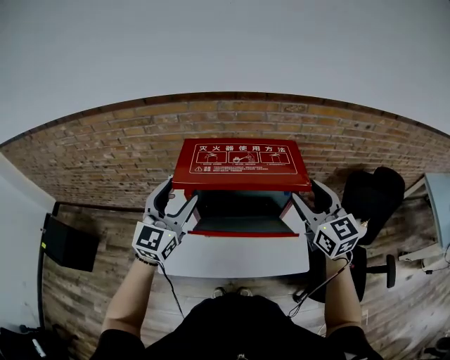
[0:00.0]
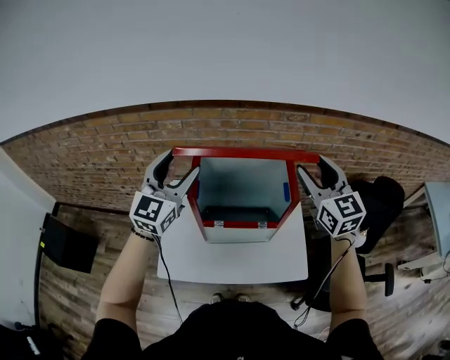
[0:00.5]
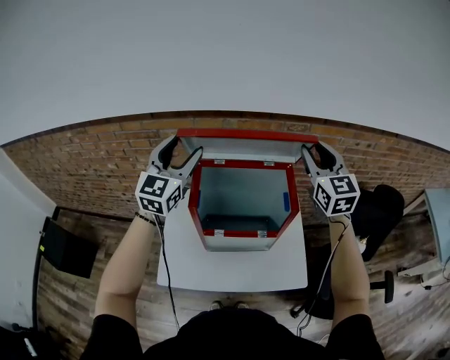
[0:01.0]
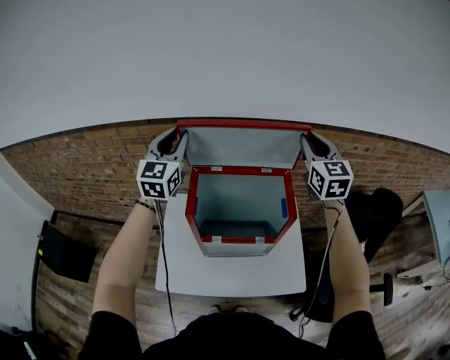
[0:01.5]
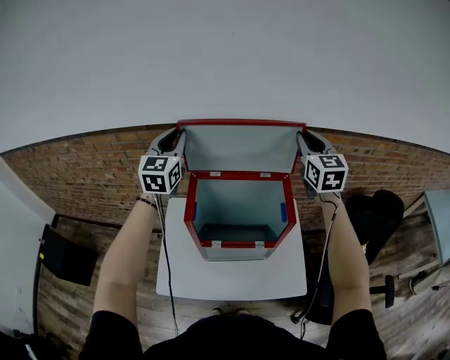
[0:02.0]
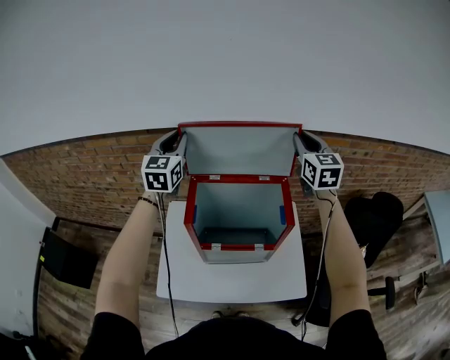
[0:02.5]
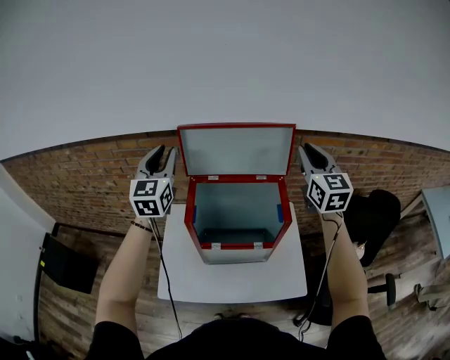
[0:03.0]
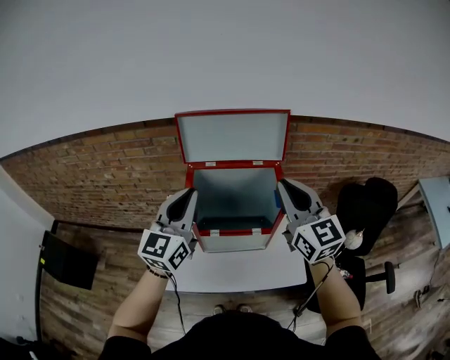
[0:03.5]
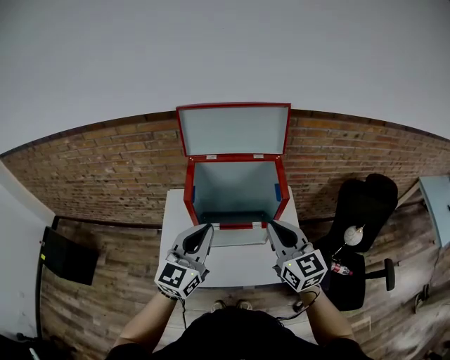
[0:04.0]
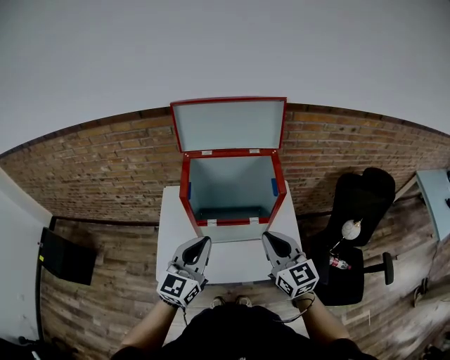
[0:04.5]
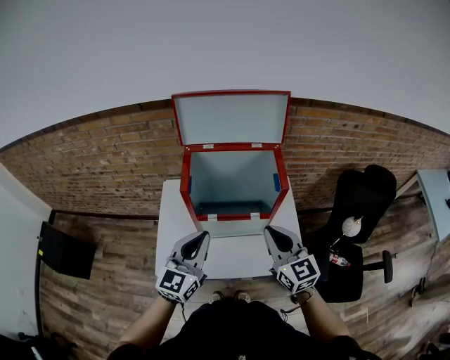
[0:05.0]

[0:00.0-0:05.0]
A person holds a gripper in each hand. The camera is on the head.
0:00.0 to 0:02.5: Both grippers travel together forward and upward, about 25 cm. The right gripper closes up, while the left gripper closes up.
0:02.5 to 0:05.0: Both grippers travel together backward and downward, roughly 40 cm. The left gripper turns by about 20 degrees.

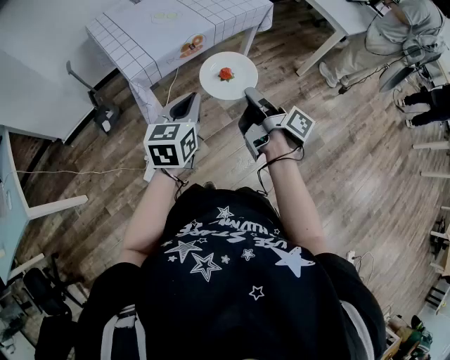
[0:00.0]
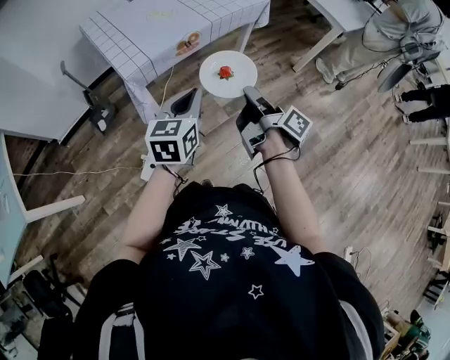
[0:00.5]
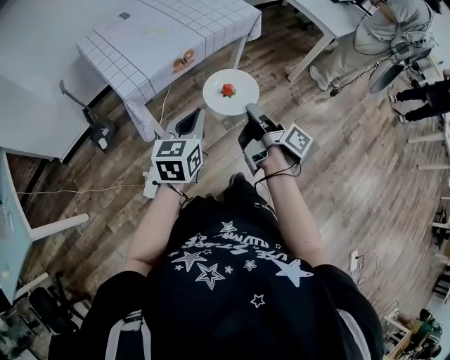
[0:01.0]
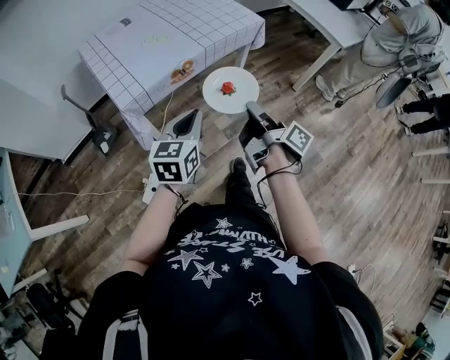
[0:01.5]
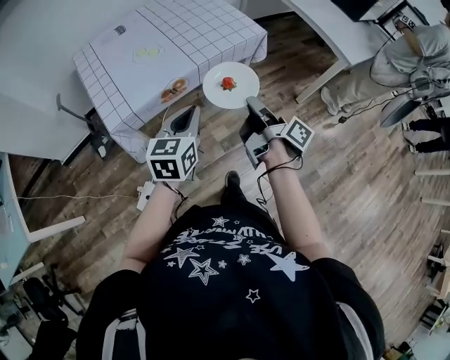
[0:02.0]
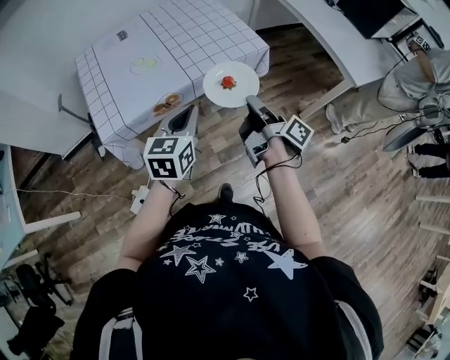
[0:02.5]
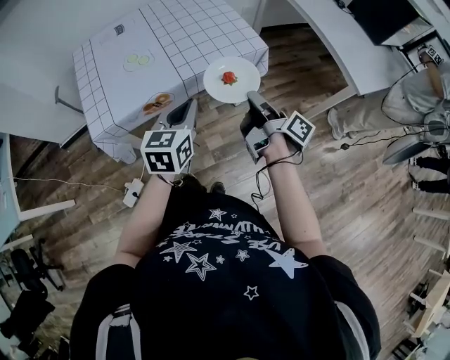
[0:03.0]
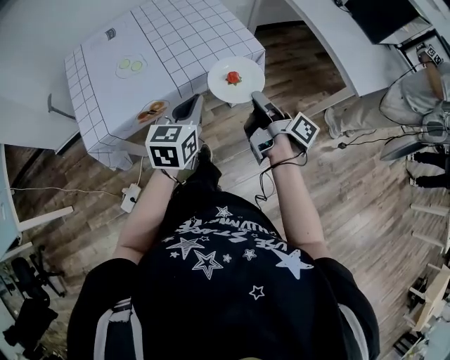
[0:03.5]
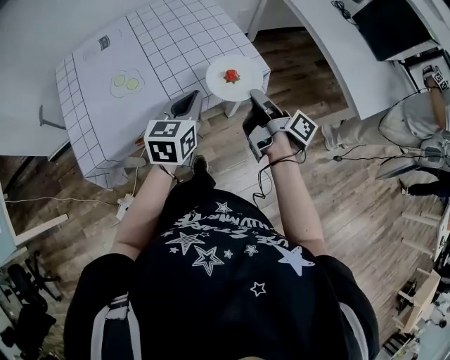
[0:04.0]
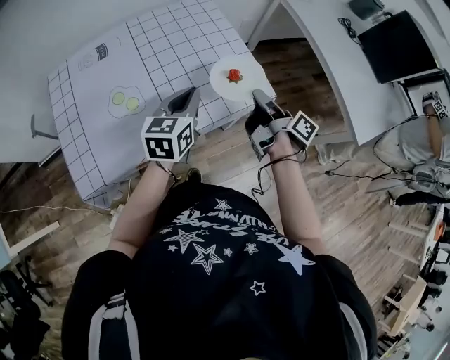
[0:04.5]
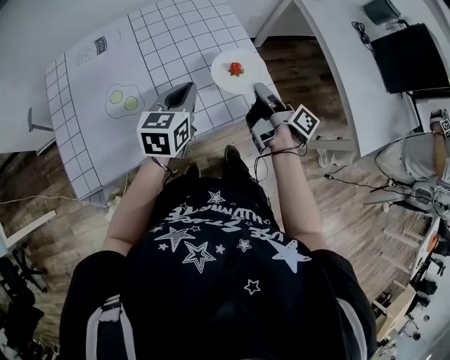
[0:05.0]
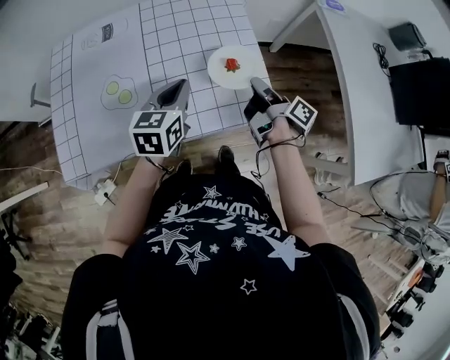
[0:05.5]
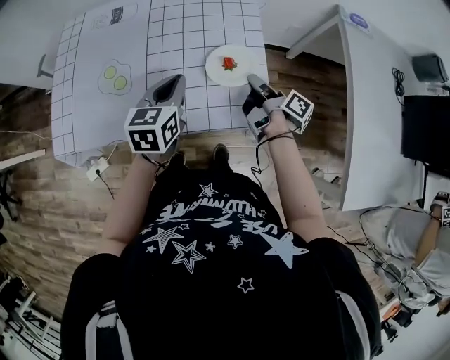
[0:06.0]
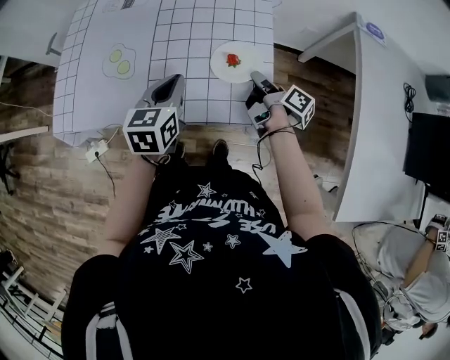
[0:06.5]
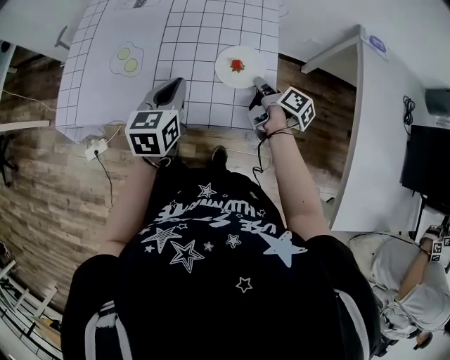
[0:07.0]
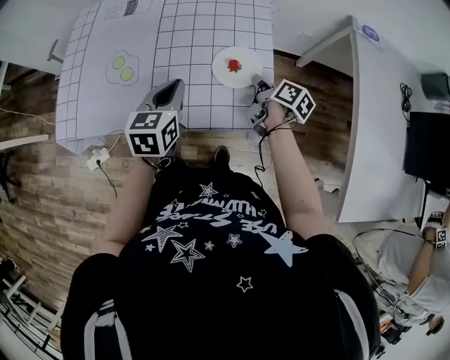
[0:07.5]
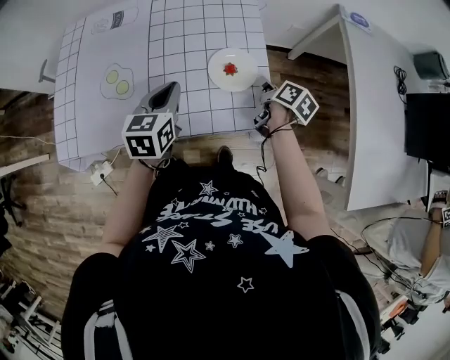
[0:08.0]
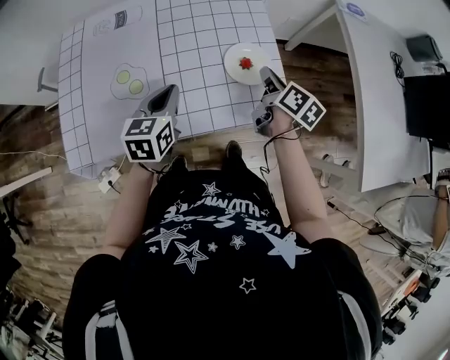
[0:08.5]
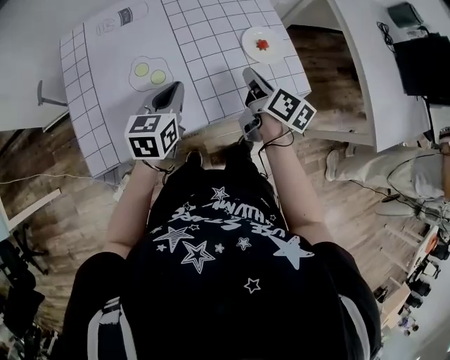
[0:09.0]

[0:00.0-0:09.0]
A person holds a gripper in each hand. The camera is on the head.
0:00.0 to 0:02.0: Both grippers move forward and to the right, approximately 20 cm.
0:02.0 to 0:04.5: The two grippers go about 35 cm forward.
0:04.5 to 0:07.0: The left gripper changes its angle by approximately 30 degrees; the right gripper moves some 20 cm, and changes its angle by roughly 40 degrees.
0:07.0 to 0:09.0: The right gripper shifts by about 20 cm, and swivels approximately 30 degrees. The left gripper shifts by roughly 15 cm, and turns by about 30 degrees.

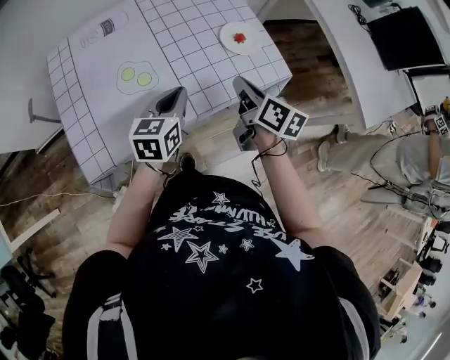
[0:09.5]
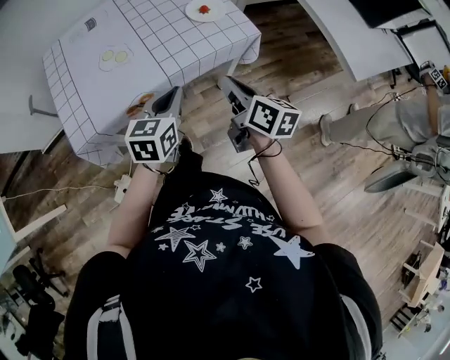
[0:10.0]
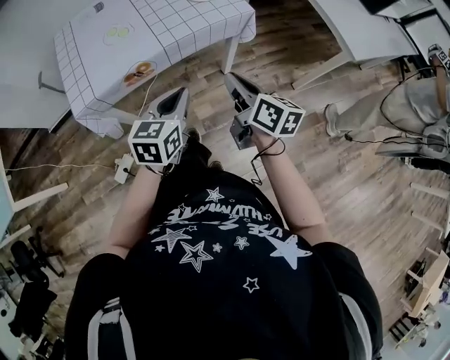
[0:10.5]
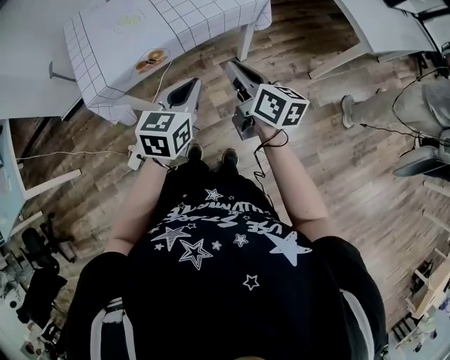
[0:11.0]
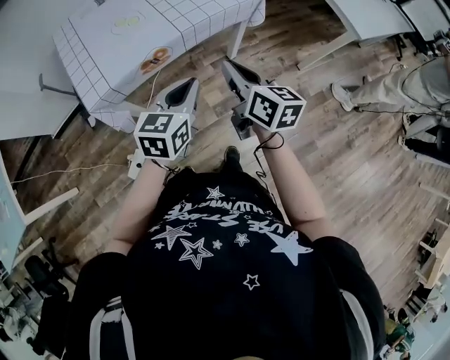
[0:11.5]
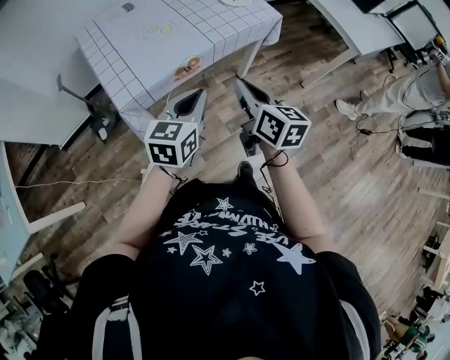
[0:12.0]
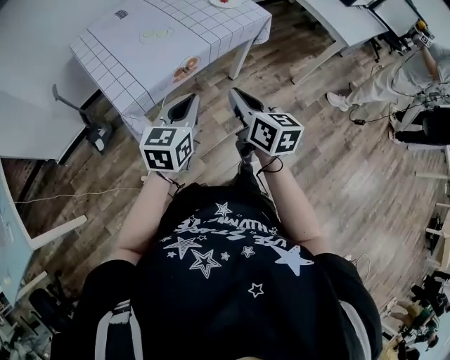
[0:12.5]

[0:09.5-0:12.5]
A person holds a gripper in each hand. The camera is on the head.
0:09.5 to 0:11.0: The left gripper heads backward and to the right, covering approximately 30 cm. The right gripper travels backward by roughly 25 cm.
0:11.0 to 0:12.5: The left gripper heads to the left, covering approximately 20 cm, while the right gripper heads to the left and backward, covering some 20 cm, and rotates some 20 degrees.

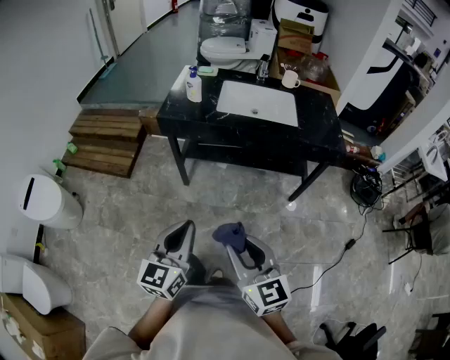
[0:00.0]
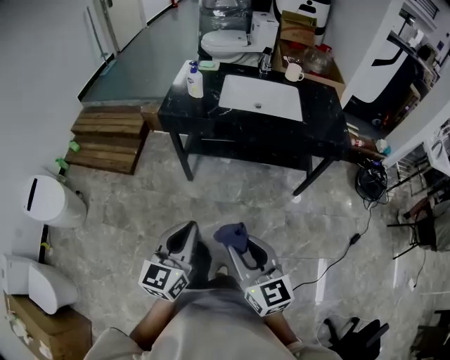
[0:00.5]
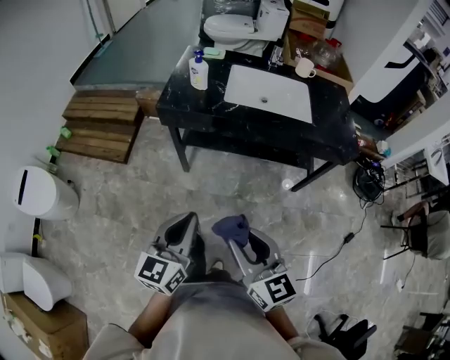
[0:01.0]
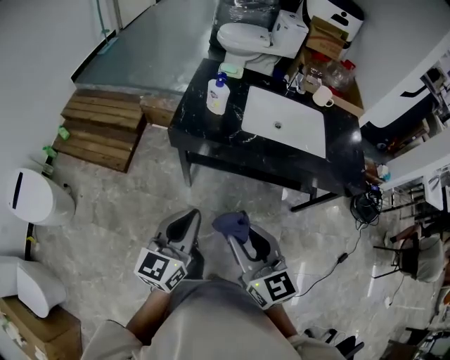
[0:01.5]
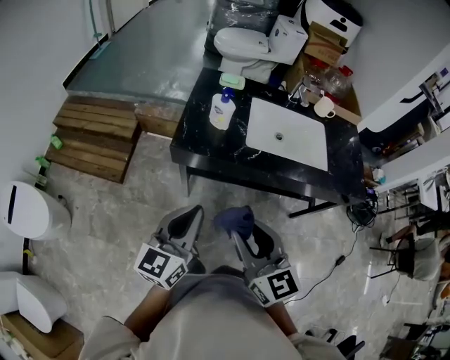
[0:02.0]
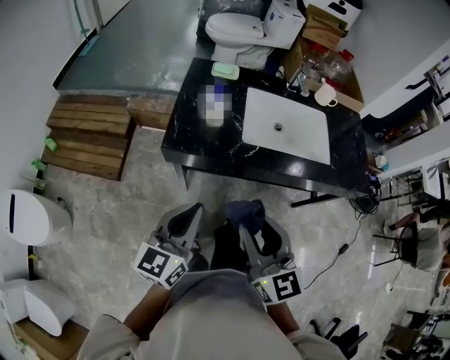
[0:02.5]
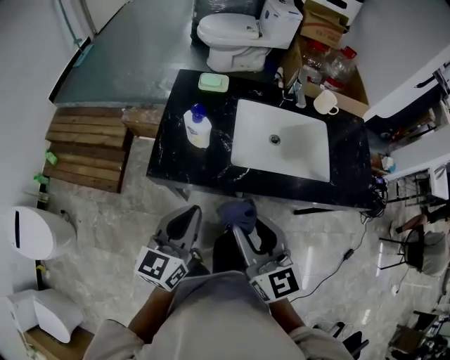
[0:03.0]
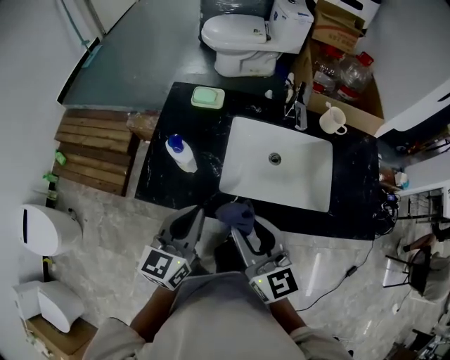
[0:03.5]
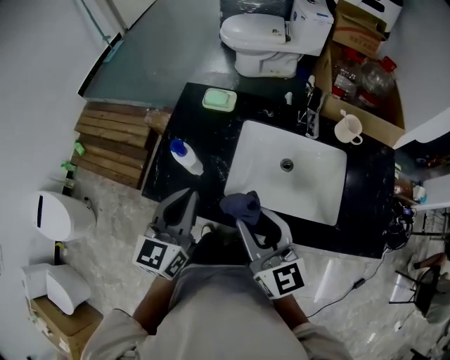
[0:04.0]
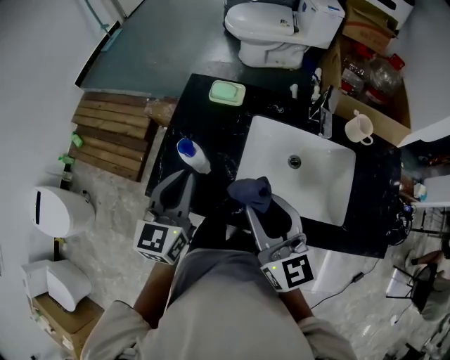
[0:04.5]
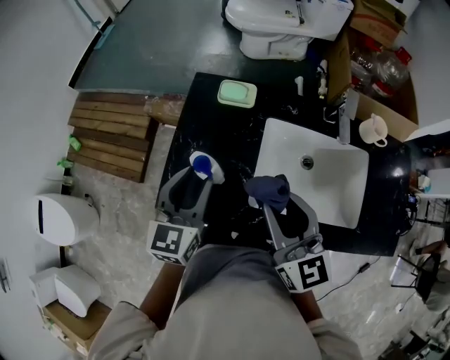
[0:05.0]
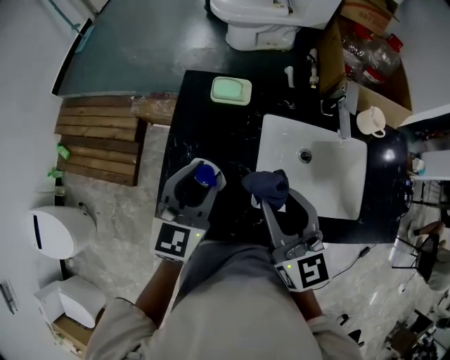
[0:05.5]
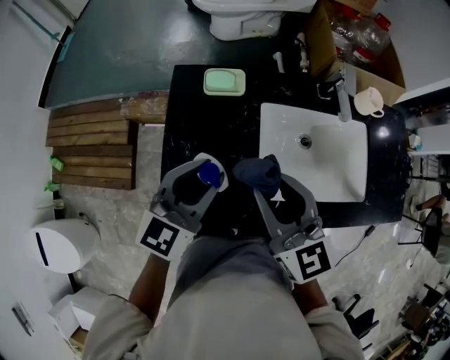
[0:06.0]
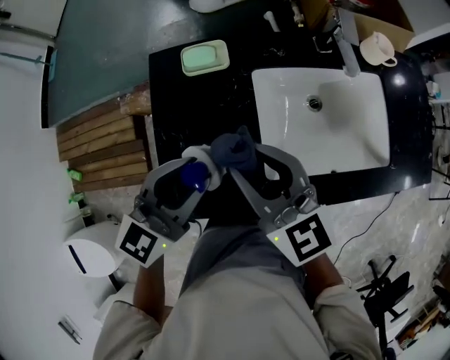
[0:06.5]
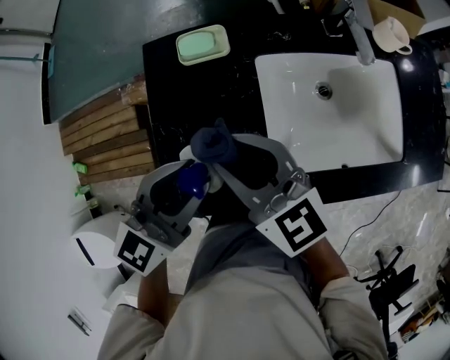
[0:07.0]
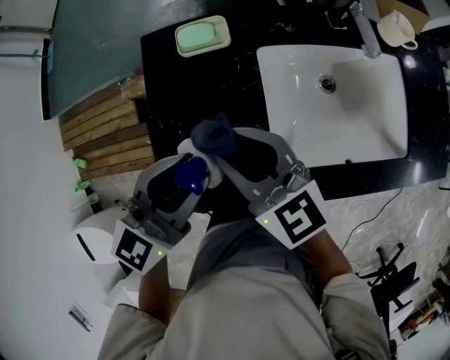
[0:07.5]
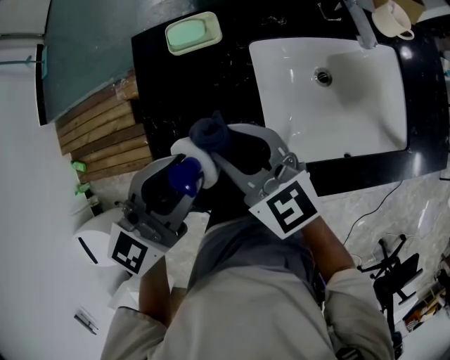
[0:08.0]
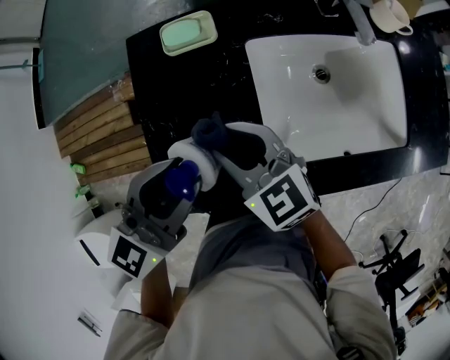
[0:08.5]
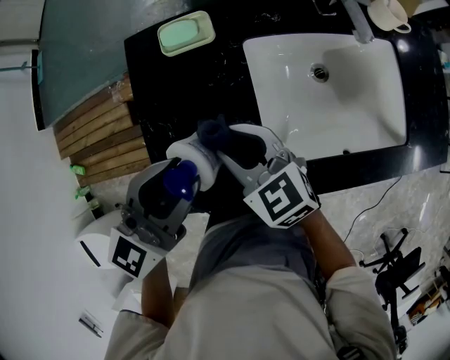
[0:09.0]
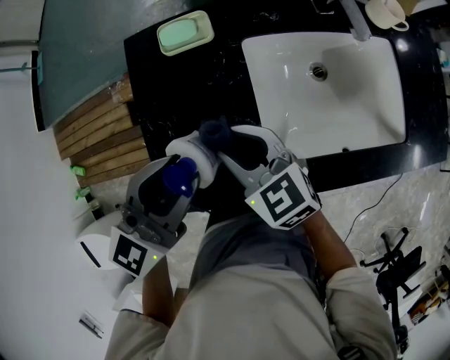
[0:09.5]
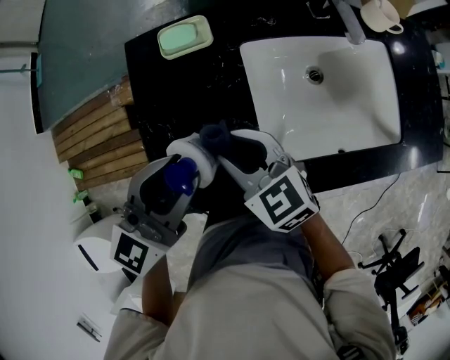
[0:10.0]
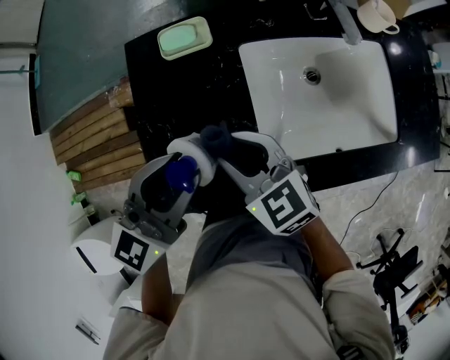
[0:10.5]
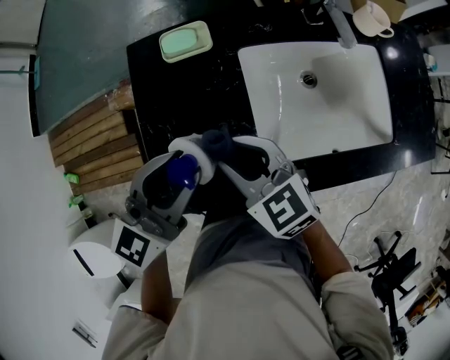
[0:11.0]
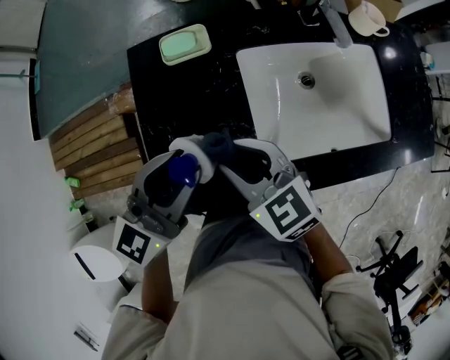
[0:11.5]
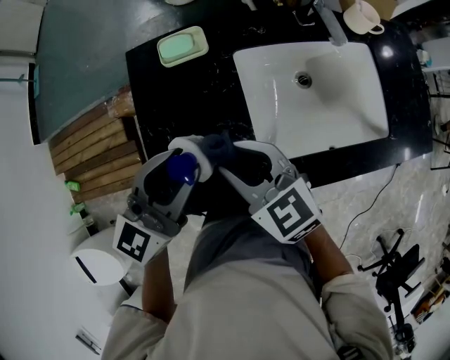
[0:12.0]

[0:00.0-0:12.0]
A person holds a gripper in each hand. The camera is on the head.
0:00.0 to 0:02.0: The two grippers go about 30 cm forward.
0:02.0 to 0:04.0: Both grippers travel together forward and to the right, roughly 30 cm.
0:04.0 to 0:06.0: The left gripper goes some 15 cm forward, to the left and downward, rotates approximately 30 degrees, and opens its fingers; the right gripper heads forward and to the left, covering about 15 cm.
0:06.0 to 0:08.0: The right gripper heads downward and to the left, covering about 10 cm.
0:08.0 to 0:12.0: The grippers make only small movements.
